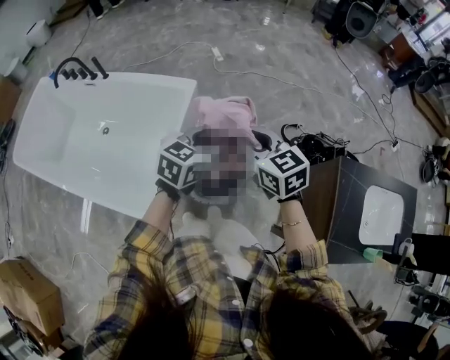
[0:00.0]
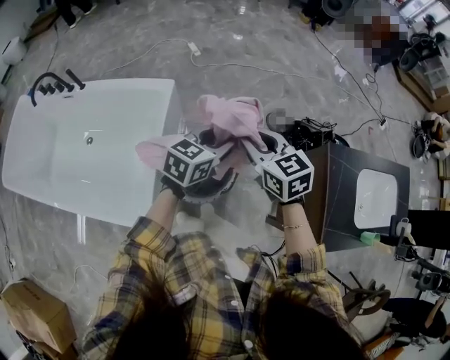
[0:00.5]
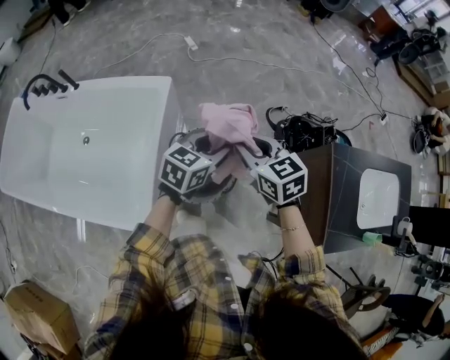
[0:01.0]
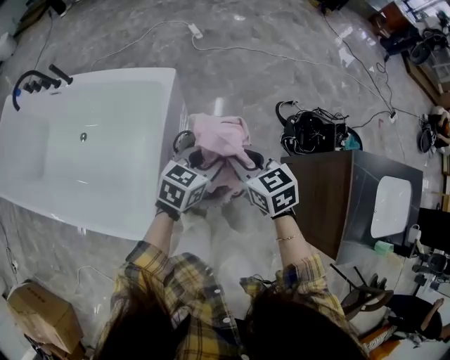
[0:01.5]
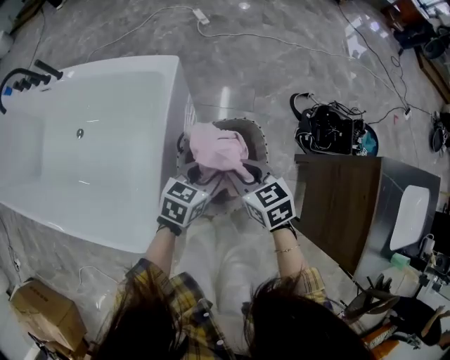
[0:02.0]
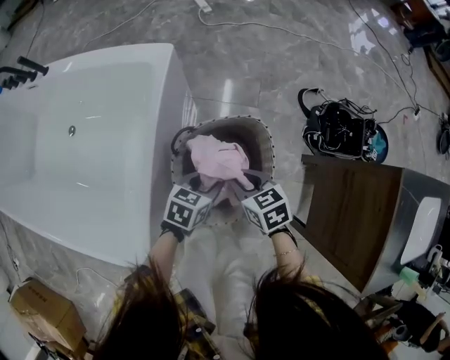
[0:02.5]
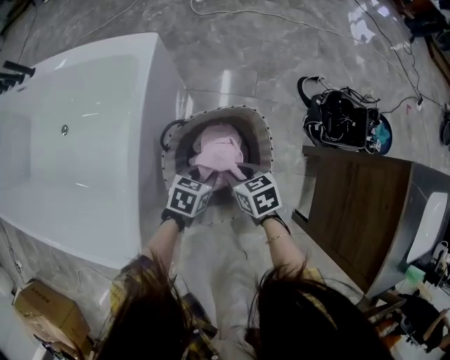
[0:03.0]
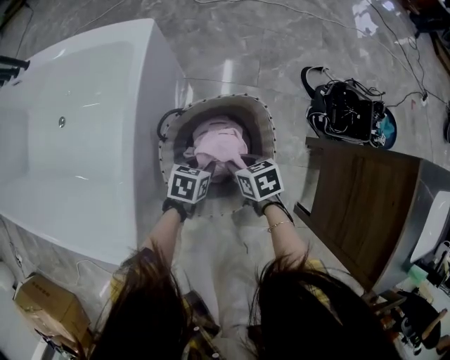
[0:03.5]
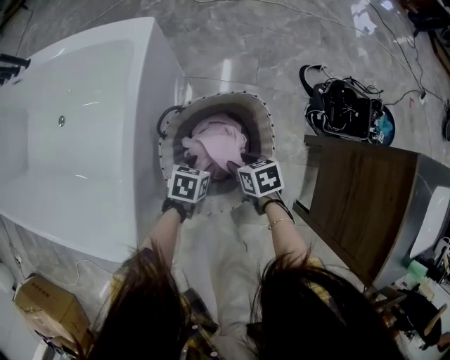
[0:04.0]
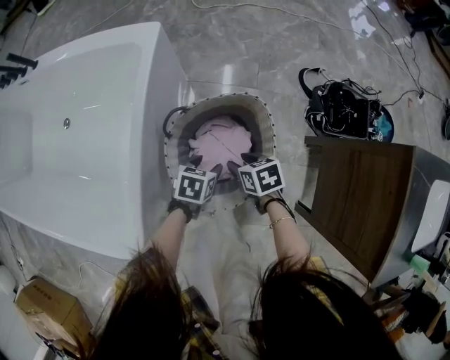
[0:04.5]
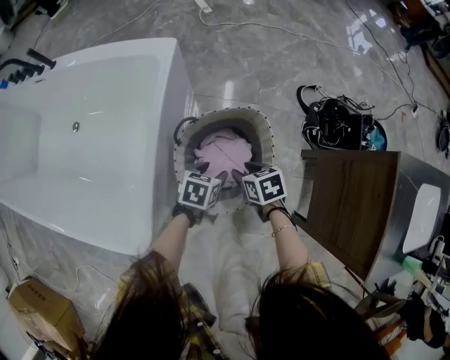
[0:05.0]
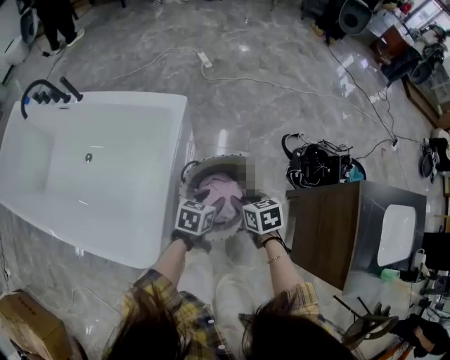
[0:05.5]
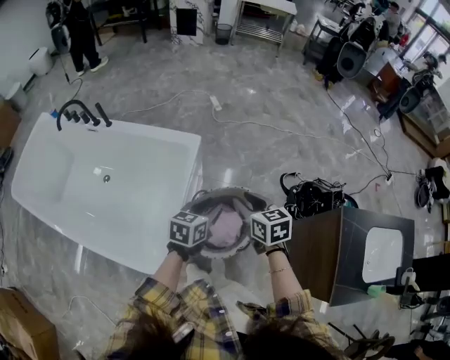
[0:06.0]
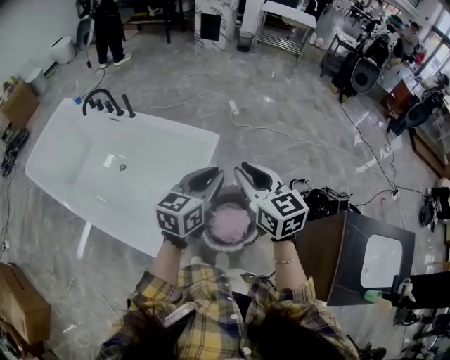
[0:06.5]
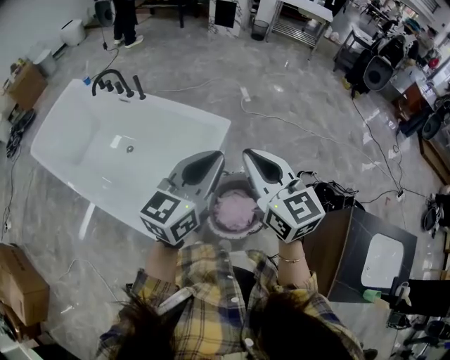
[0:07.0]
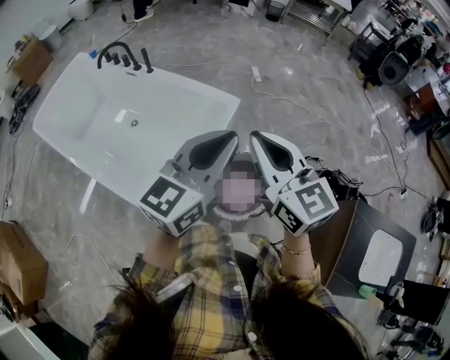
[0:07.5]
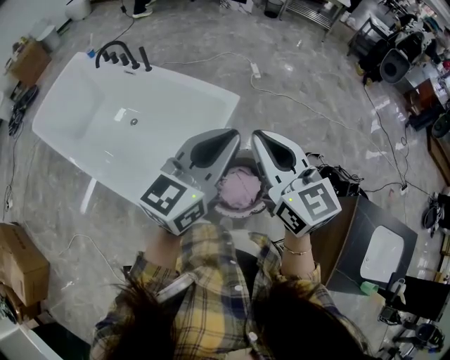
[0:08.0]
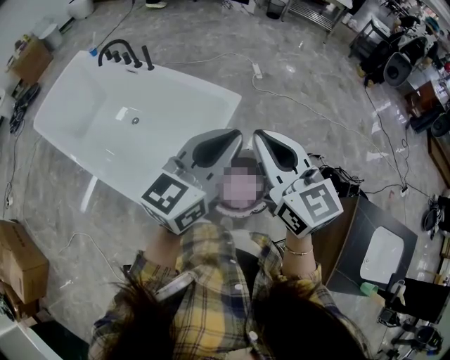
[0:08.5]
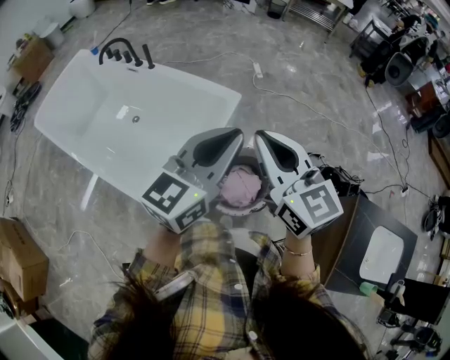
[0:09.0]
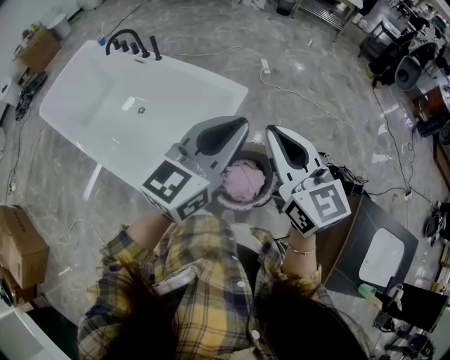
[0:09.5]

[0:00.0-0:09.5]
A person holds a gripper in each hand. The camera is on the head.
0:00.0 to 0:02.0: The two grippers go some 25 cm downward. The right gripper turns by some 20 degrees.
0:02.0 to 0:04.0: The grippers both shift downward by approximately 25 cm. The right gripper swivels approximately 30 degrees, while the left gripper rotates roughly 30 degrees.
0:04.0 to 0:05.5: Both grippers travel together upward, roughly 20 cm.
0:05.5 to 0:07.5: The two grippers go some 50 cm upward. The right gripper points its fingers approximately 50 degrees further upward, and closes up. Meanwhile the left gripper tilts its fingers roughly 50 degrees upward, and closes.
0:07.5 to 0:09.5: The grippers make only small movements.

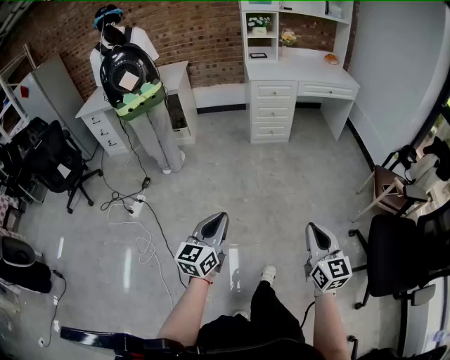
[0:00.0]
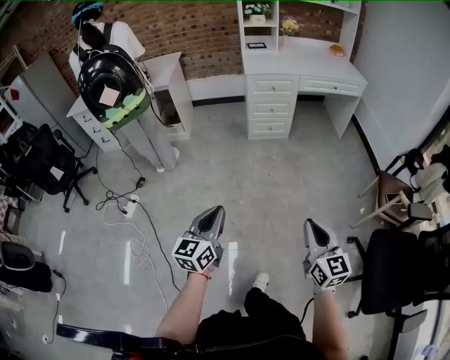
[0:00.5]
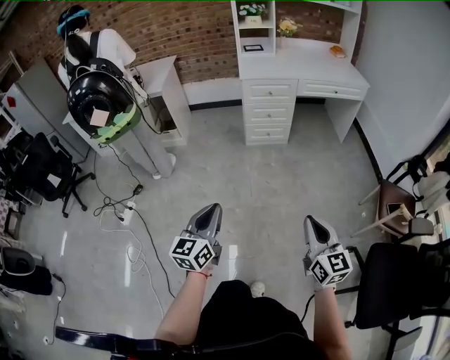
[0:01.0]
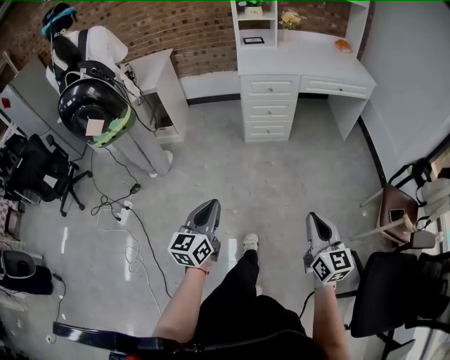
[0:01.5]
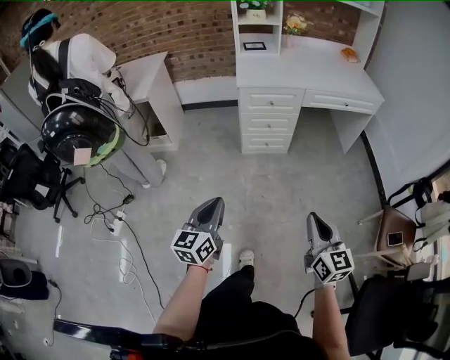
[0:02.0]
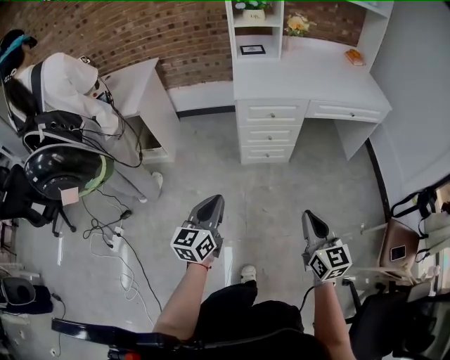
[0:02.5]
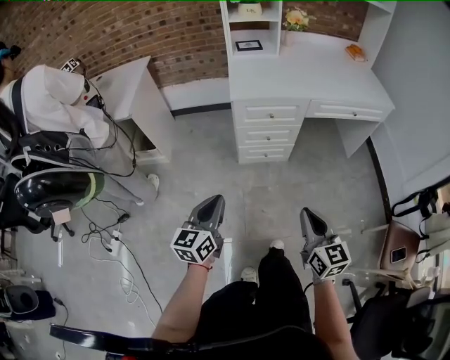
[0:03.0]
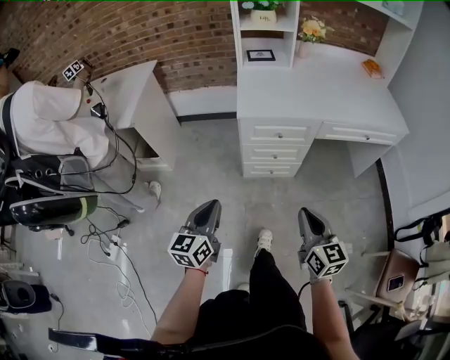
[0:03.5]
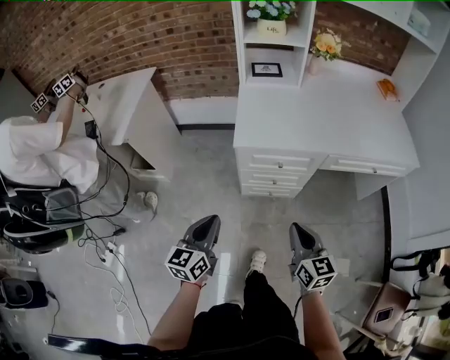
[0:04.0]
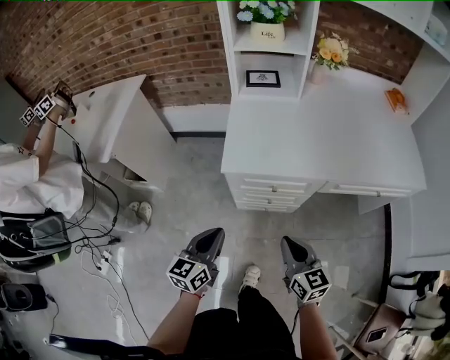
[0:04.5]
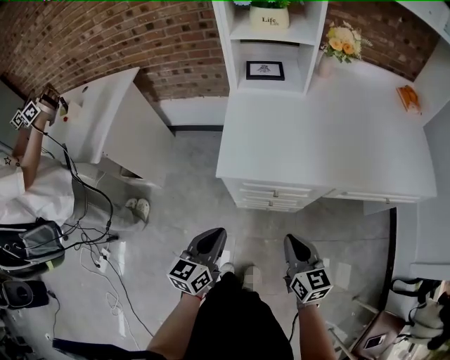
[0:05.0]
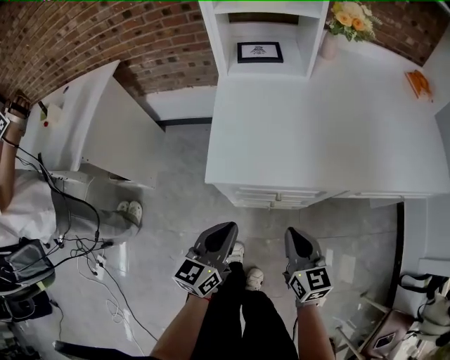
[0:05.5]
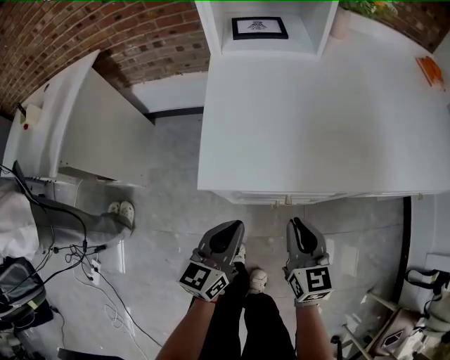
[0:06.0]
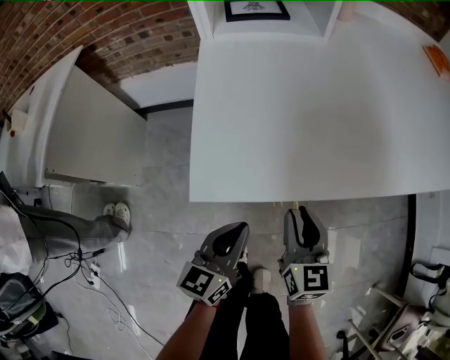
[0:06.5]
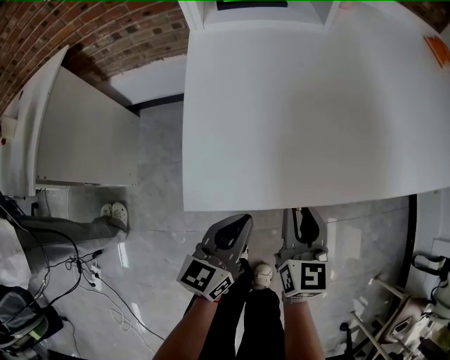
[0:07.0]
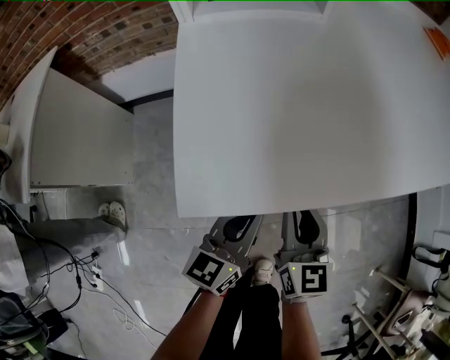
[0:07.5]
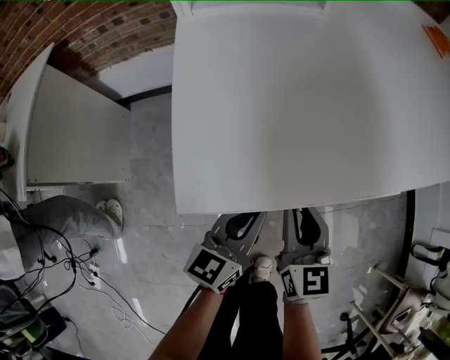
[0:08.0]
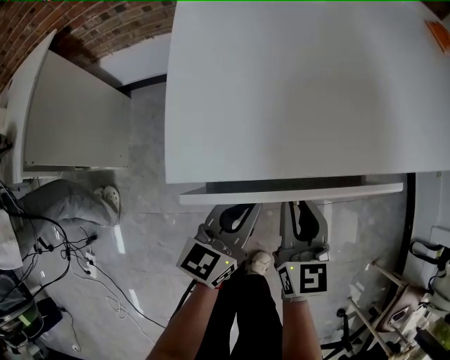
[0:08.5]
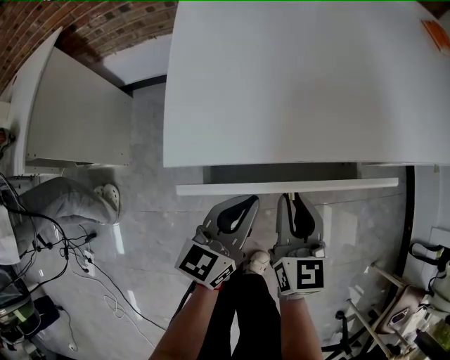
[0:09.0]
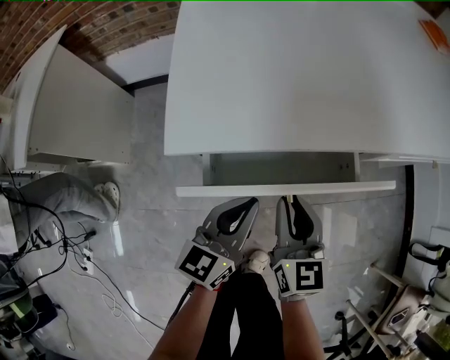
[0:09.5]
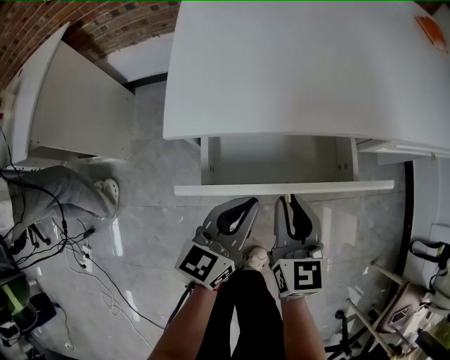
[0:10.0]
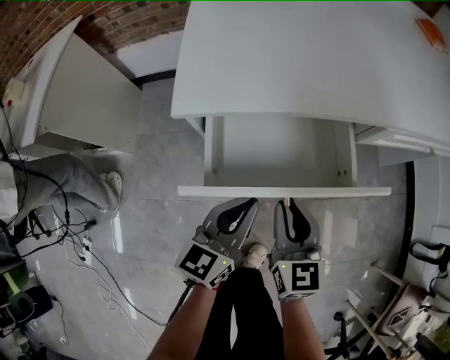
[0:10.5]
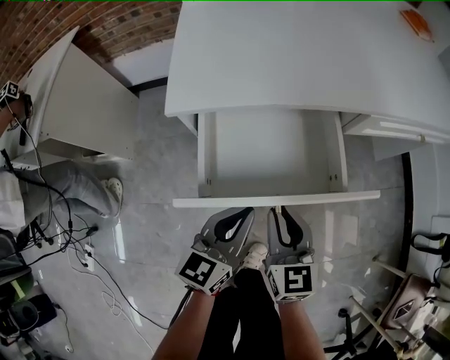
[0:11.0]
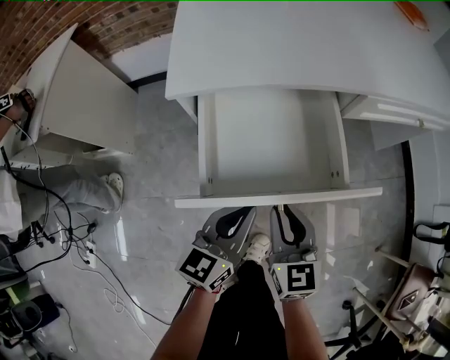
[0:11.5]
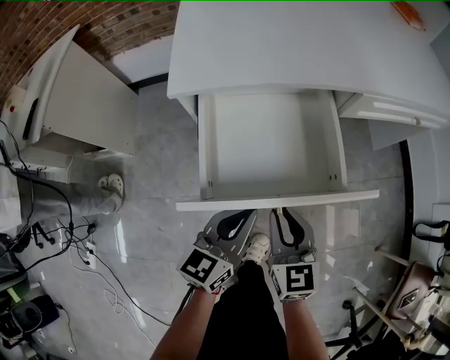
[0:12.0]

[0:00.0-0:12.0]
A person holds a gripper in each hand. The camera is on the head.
0:00.0 to 0:02.0: Both grippers are carried forward, approximately 50 cm.
0:02.0 to 0:04.0: Both grippers travel together forward, approximately 40 cm.
0:04.0 to 0:06.0: The left gripper goes roughly 30 cm forward, downward and to the right. The right gripper travels forward and downward by roughly 30 cm.
0:06.0 to 0:08.0: The left gripper heads forward, covering some 5 cm; the right gripper moves some 5 cm.
0:08.0 to 0:10.0: Both grippers move backward, some 10 cm.
0:10.0 to 0:12.0: Both grippers move backward, roughly 10 cm.

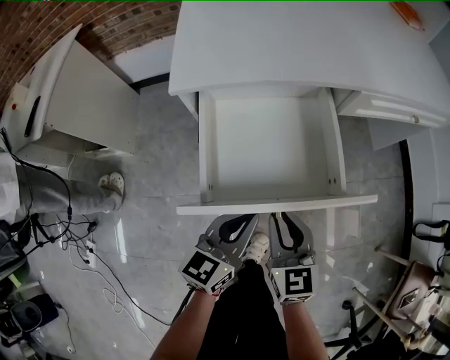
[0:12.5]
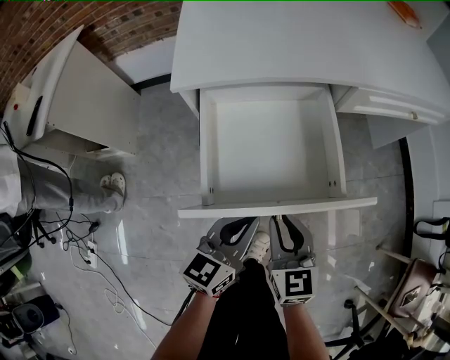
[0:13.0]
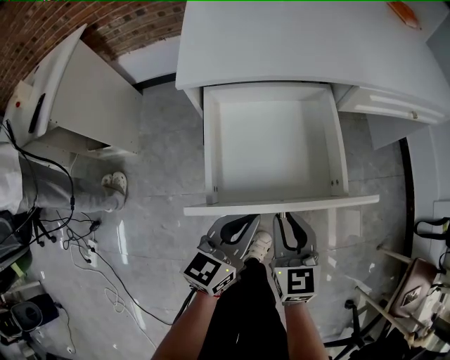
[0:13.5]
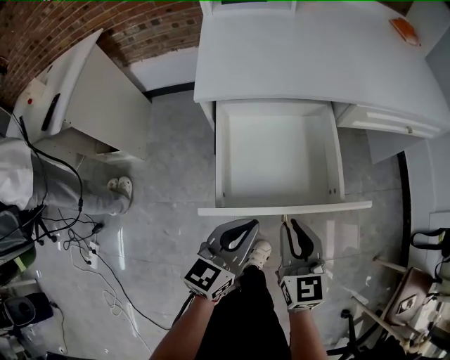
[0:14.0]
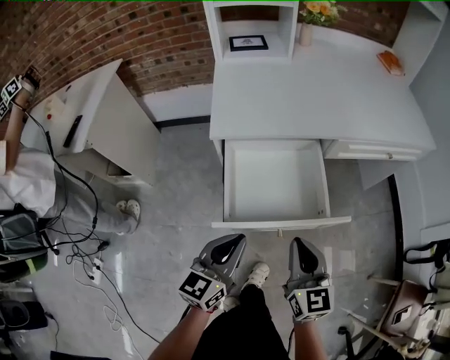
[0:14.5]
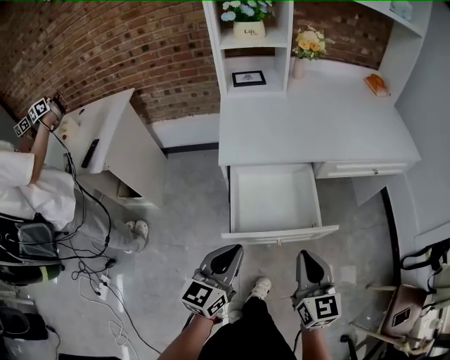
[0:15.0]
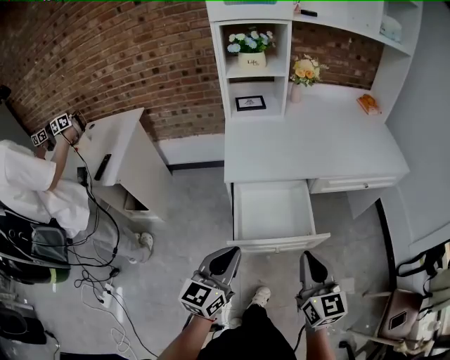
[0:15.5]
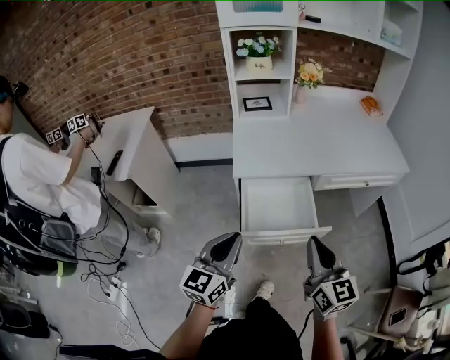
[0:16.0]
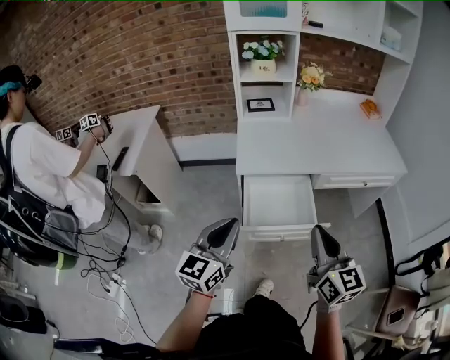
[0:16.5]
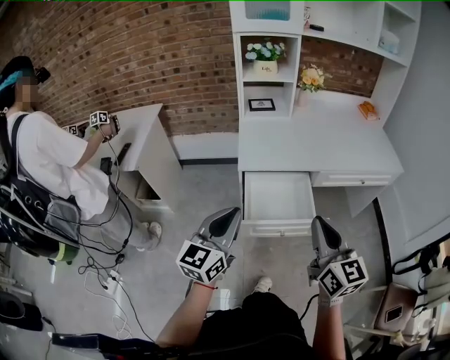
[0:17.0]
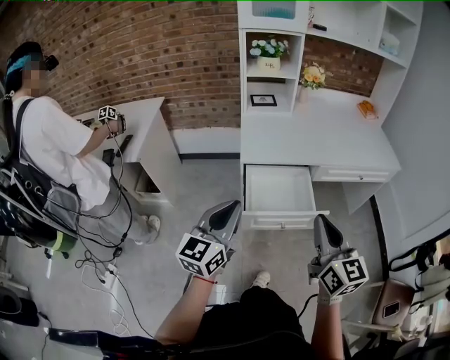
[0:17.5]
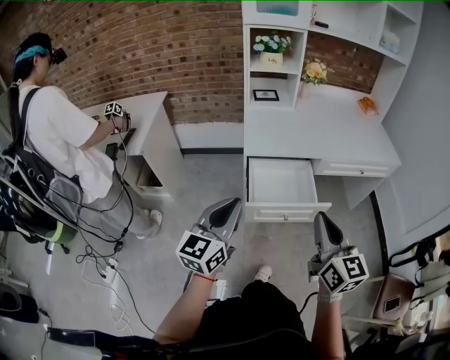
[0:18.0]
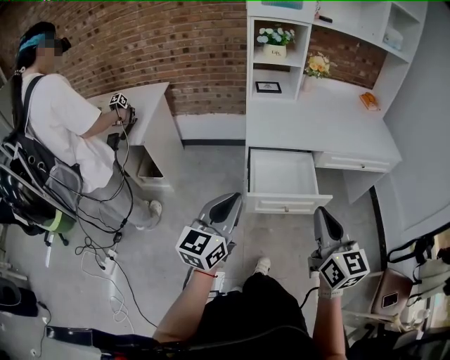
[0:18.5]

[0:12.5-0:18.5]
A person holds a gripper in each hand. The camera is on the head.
0:12.5 to 0:14.5: The left gripper travels upward and backward by roughly 10 cm. Meanwhile the right gripper is displaced upward by some 15 cm.
0:14.5 to 0:16.5: Both grippers travel together upward, approximately 25 cm.
0:16.5 to 0:18.5: Both grippers travel together backward, roughly 10 cm.
